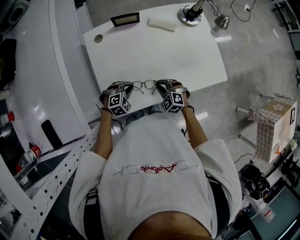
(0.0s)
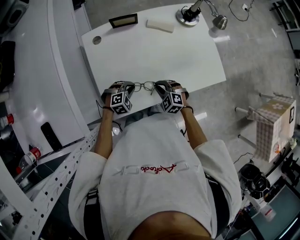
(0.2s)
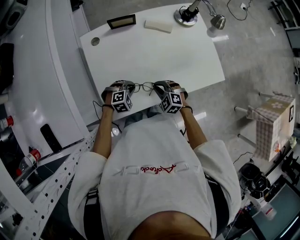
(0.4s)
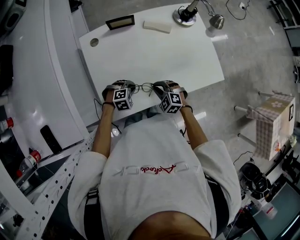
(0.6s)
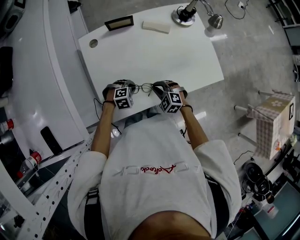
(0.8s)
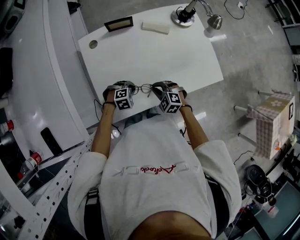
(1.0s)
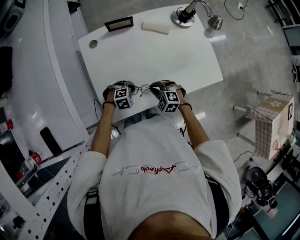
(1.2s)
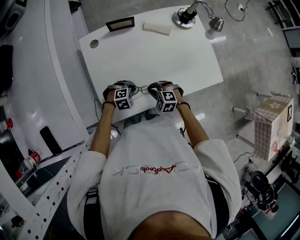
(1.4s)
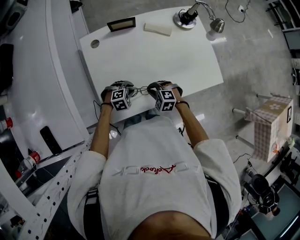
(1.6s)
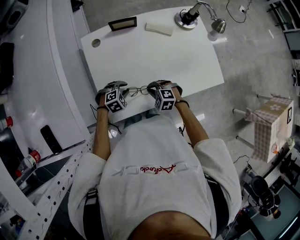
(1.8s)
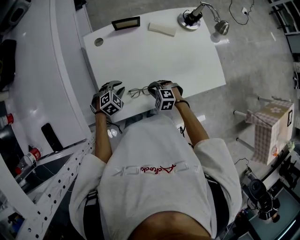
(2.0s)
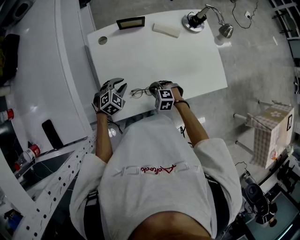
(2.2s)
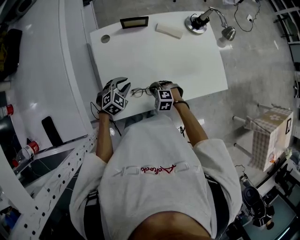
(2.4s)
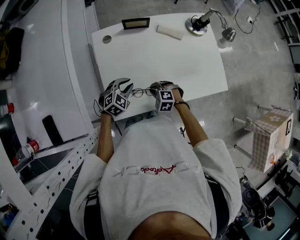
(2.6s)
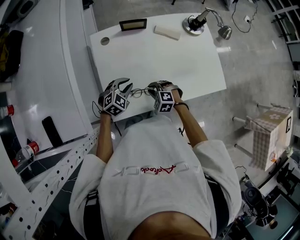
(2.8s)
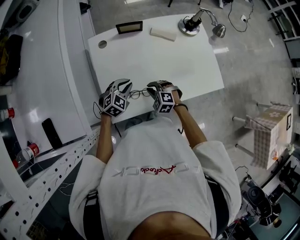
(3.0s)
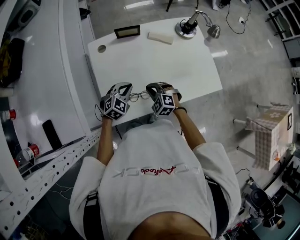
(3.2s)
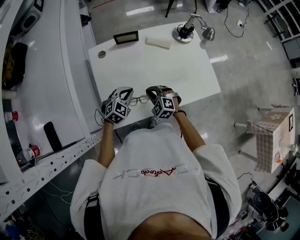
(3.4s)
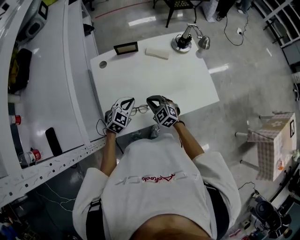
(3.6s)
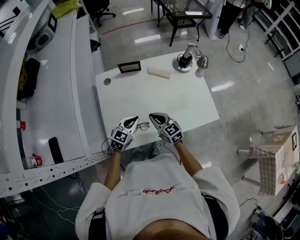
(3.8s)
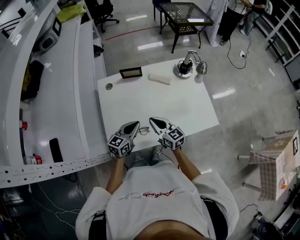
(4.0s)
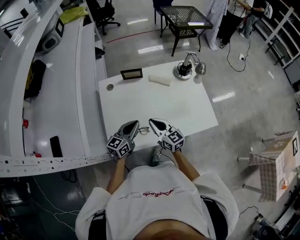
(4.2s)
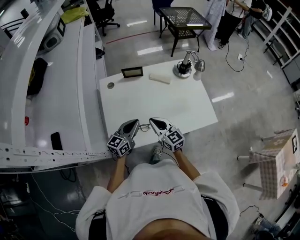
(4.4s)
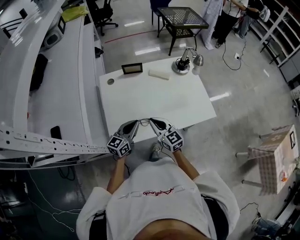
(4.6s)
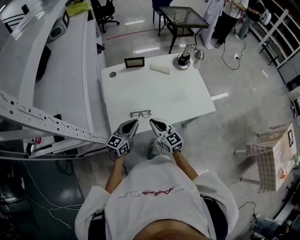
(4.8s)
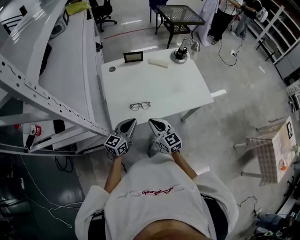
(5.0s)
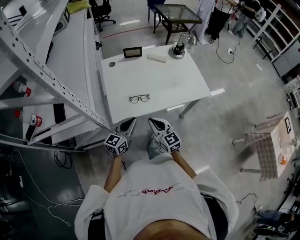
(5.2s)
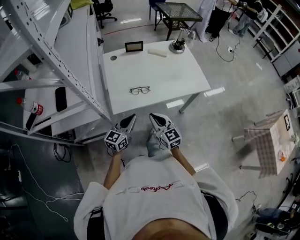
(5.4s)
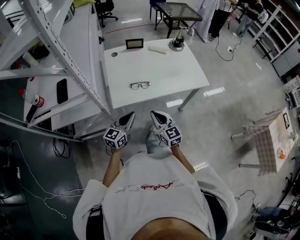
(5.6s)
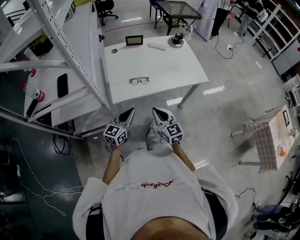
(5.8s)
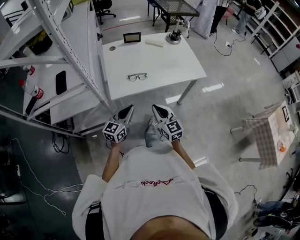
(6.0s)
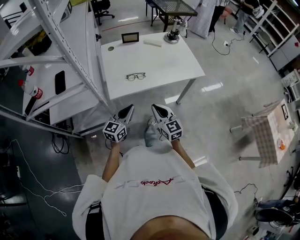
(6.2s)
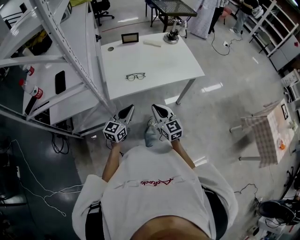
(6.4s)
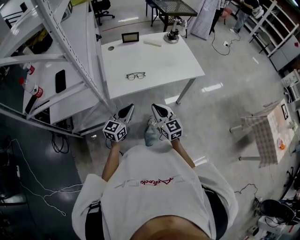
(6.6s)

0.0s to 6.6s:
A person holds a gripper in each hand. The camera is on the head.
0.0s to 1.6s: The grippers stay close to where they were, moving slightly.
1.6s to 3.2s: The right gripper goes some 5 cm upward, while the left gripper heads upward, covering roughly 10 cm, and swivels about 30 degrees.
3.2s to 5.0s: Both grippers travel together backward and upward, roughly 20 cm. The right gripper tilts its fingers about 40 degrees upward; the left gripper points its fingers approximately 30 degrees further upward.
5.0s to 6.6s: The two grippers go about 15 cm backward.

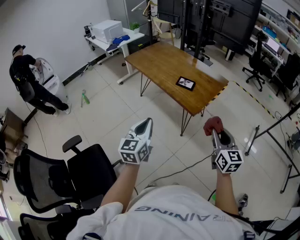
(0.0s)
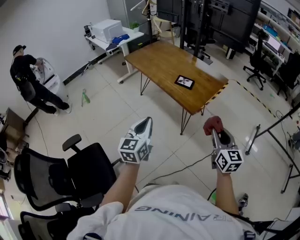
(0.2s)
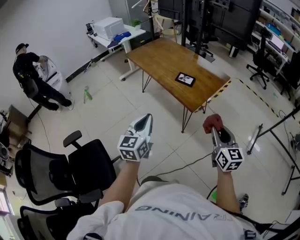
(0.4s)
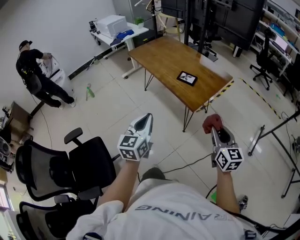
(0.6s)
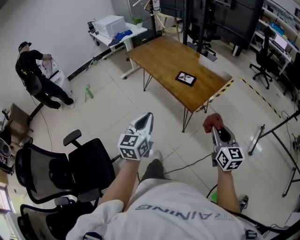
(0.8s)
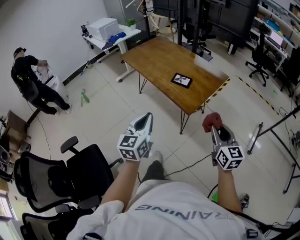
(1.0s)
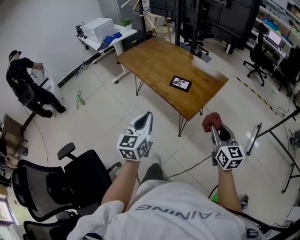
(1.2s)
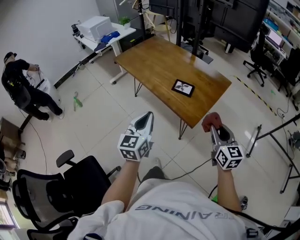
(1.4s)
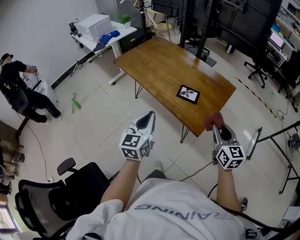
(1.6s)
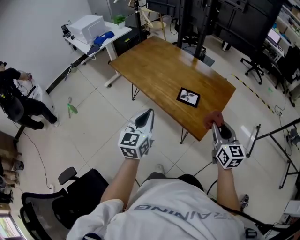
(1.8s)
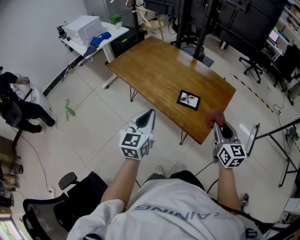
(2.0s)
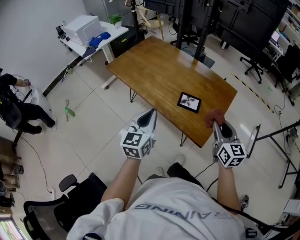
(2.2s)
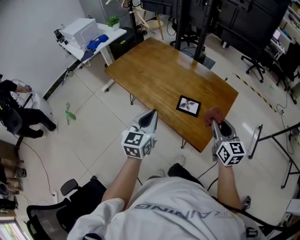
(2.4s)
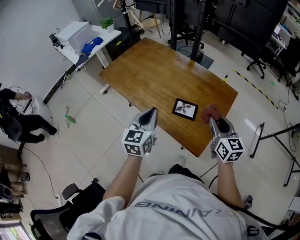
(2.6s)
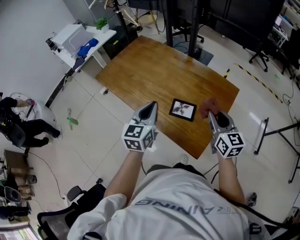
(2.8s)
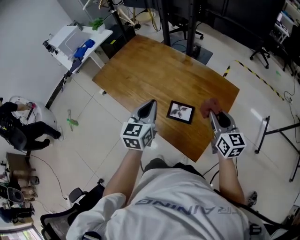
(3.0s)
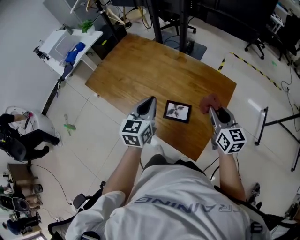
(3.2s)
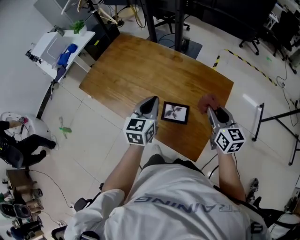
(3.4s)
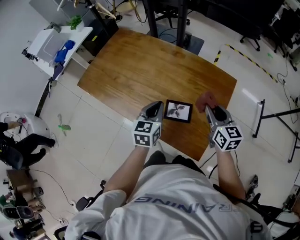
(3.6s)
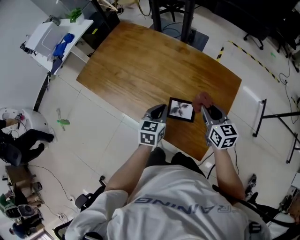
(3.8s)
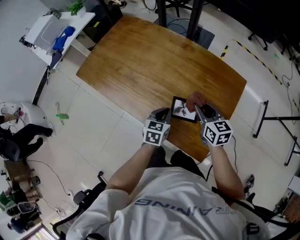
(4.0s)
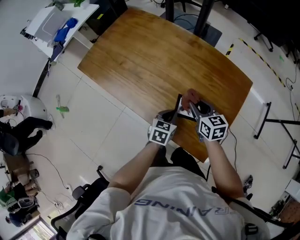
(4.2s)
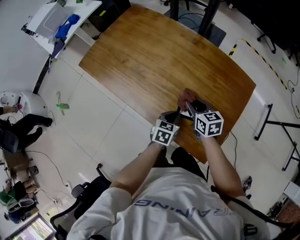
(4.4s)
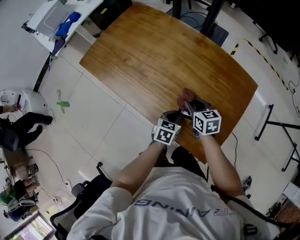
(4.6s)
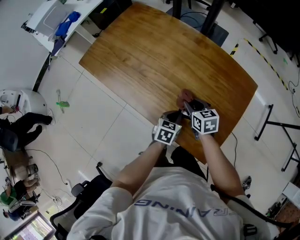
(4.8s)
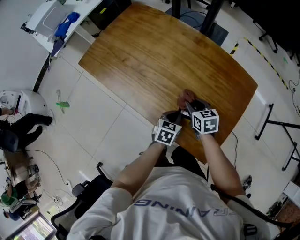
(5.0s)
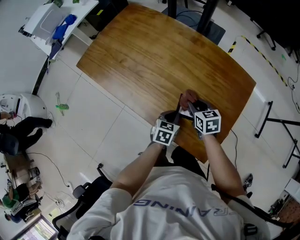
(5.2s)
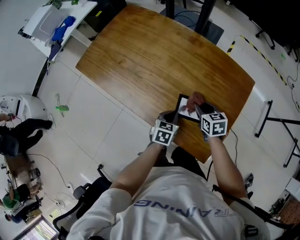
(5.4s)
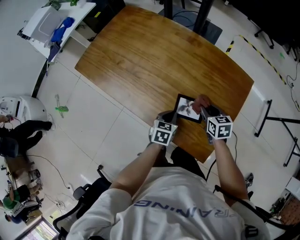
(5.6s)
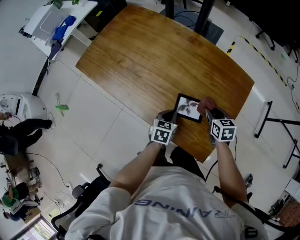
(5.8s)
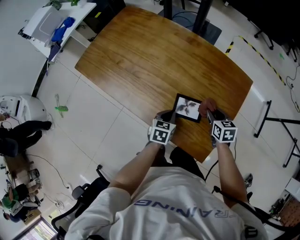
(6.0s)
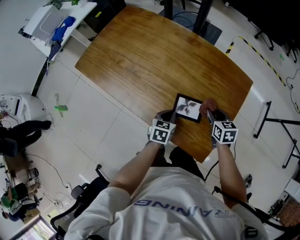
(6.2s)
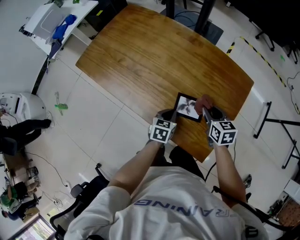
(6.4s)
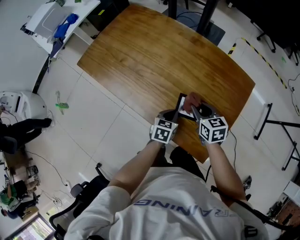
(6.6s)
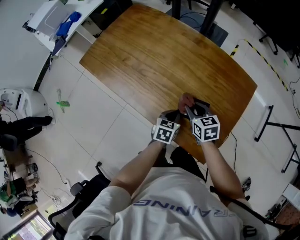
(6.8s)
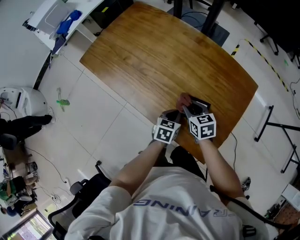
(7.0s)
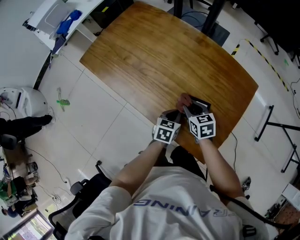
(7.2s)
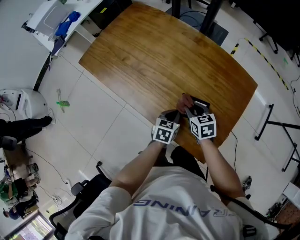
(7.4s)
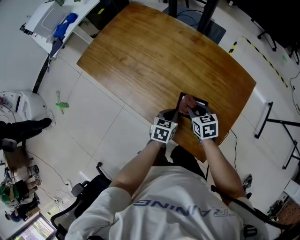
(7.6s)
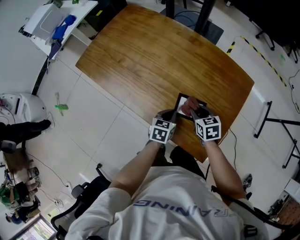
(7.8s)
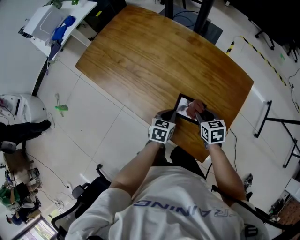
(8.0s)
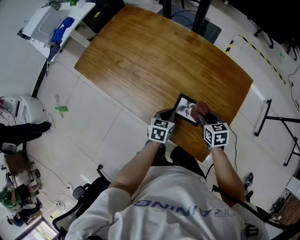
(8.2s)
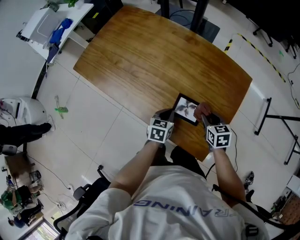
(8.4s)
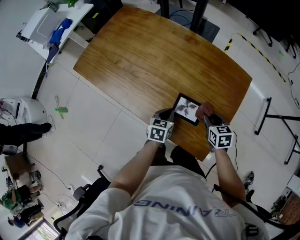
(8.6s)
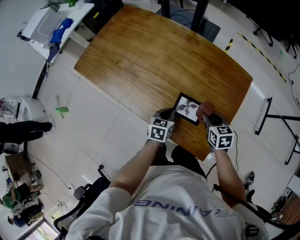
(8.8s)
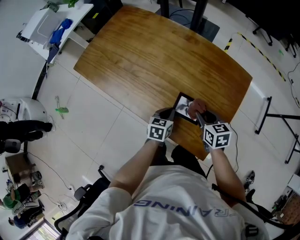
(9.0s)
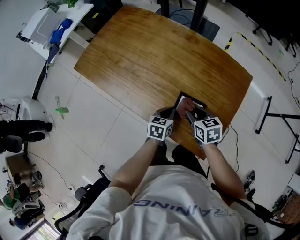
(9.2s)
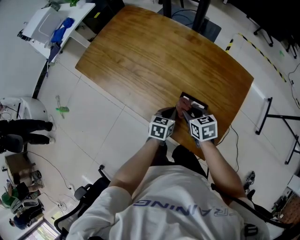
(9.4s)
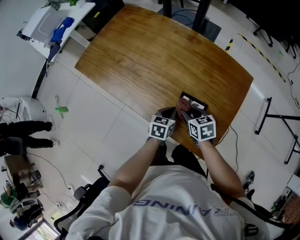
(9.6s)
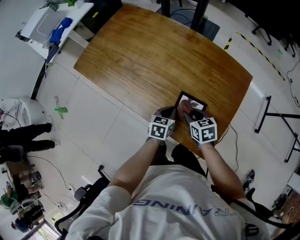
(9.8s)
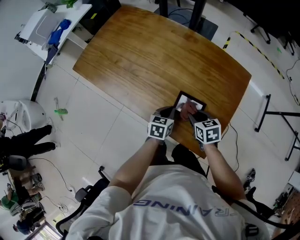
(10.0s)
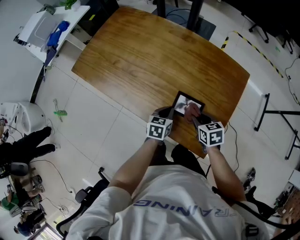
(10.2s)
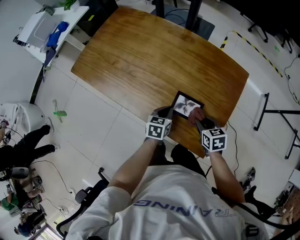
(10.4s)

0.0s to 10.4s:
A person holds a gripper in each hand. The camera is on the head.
0.0s to 1.4s: Both grippers travel together forward, some 15 cm.
1.4s to 3.0s: Both grippers travel together forward, some 30 cm.
3.0s to 4.4s: The right gripper moves downward, to the left and forward, roughly 25 cm, and changes its angle by about 30 degrees, while the left gripper heads downward, covering approximately 25 cm, and rotates roughly 30 degrees.
4.4s to 6.0s: The right gripper heads to the right, covering some 15 cm.
6.0s to 7.4s: The right gripper goes about 15 cm to the left.
7.4s to 9.0s: The right gripper goes some 5 cm to the right.
9.0s to 10.4s: The right gripper reaches about 5 cm to the left, then returns.

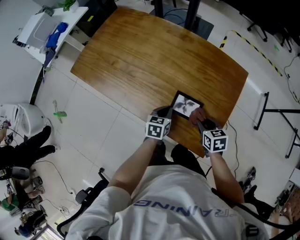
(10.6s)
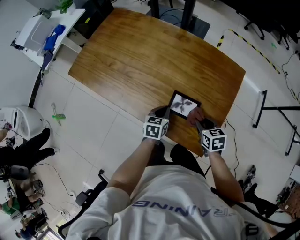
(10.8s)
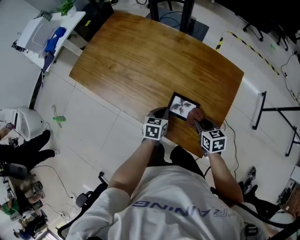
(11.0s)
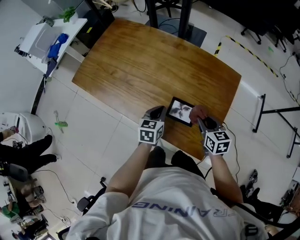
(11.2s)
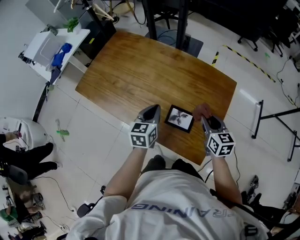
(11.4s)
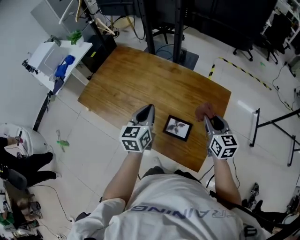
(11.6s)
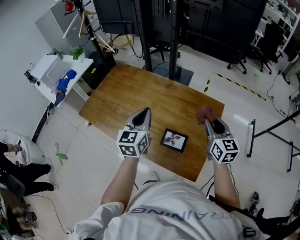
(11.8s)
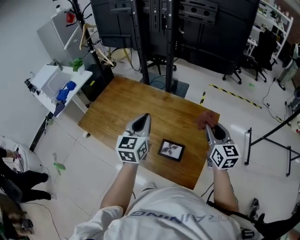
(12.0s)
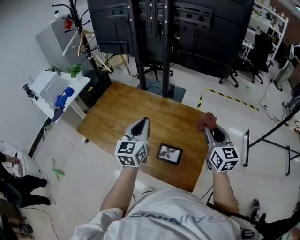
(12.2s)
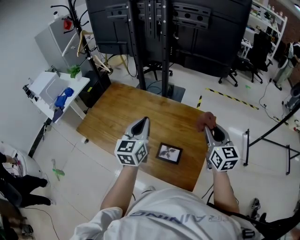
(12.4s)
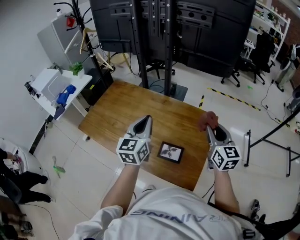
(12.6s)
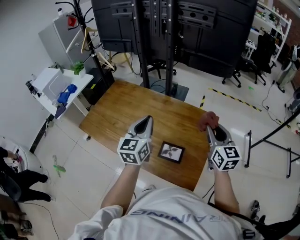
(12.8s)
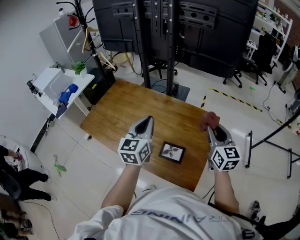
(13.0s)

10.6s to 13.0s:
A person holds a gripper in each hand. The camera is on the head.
10.6s to 11.8s: The grippers both shift upward by roughly 30 cm. The left gripper tilts its fingers about 30 degrees upward; the right gripper points its fingers some 40 degrees further upward.
11.8s to 13.0s: The right gripper goes roughly 5 cm upward. The left gripper moves about 5 cm.

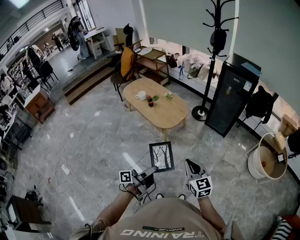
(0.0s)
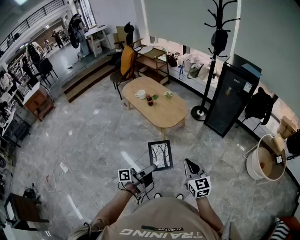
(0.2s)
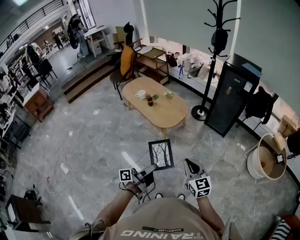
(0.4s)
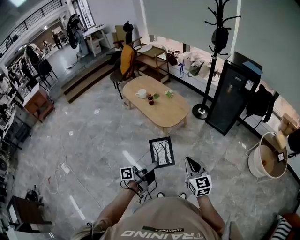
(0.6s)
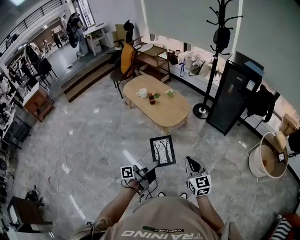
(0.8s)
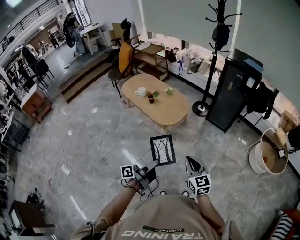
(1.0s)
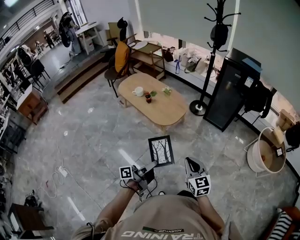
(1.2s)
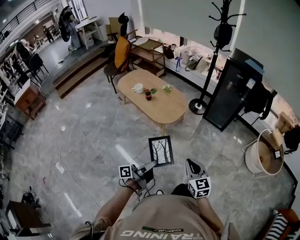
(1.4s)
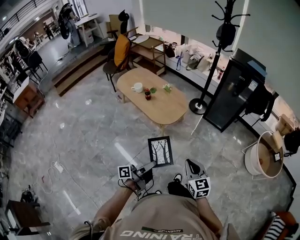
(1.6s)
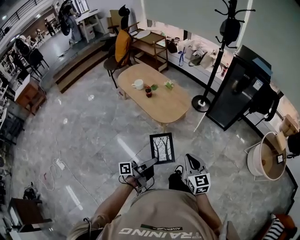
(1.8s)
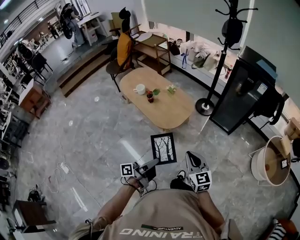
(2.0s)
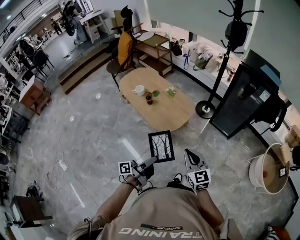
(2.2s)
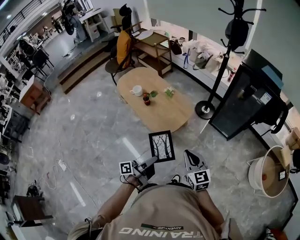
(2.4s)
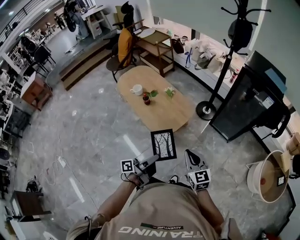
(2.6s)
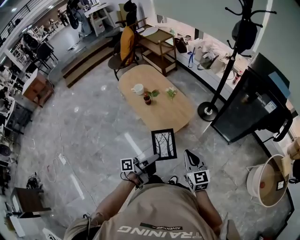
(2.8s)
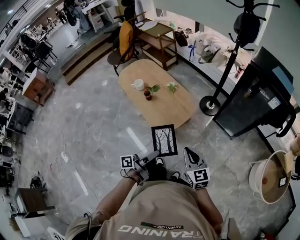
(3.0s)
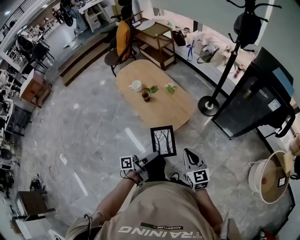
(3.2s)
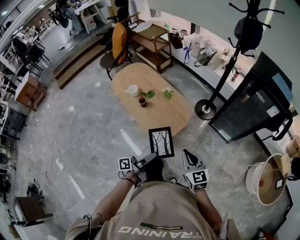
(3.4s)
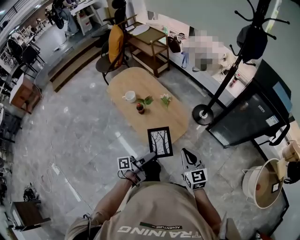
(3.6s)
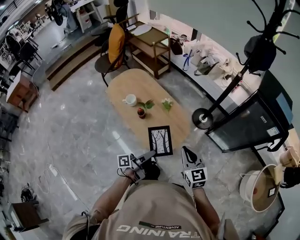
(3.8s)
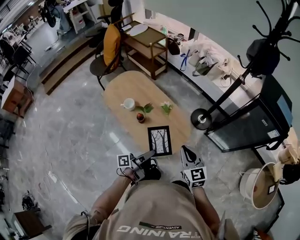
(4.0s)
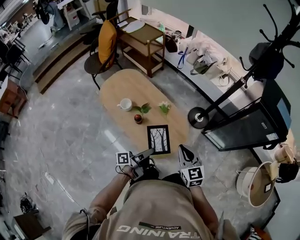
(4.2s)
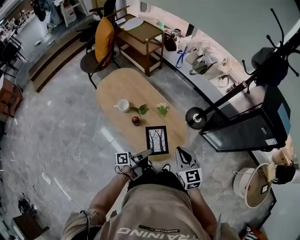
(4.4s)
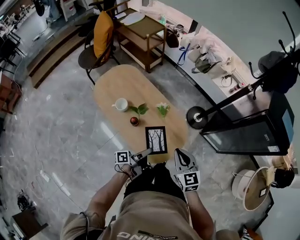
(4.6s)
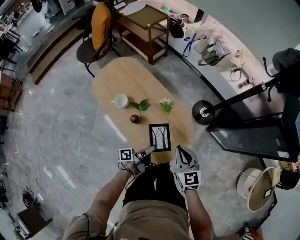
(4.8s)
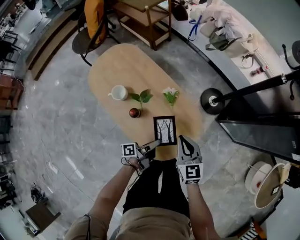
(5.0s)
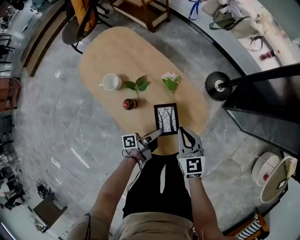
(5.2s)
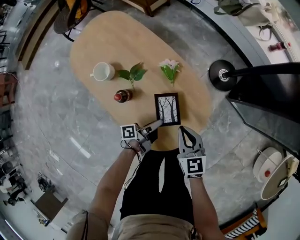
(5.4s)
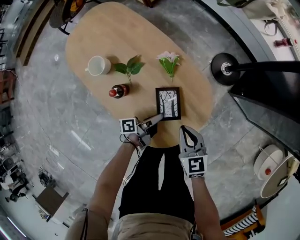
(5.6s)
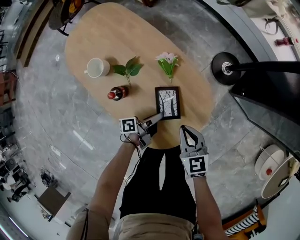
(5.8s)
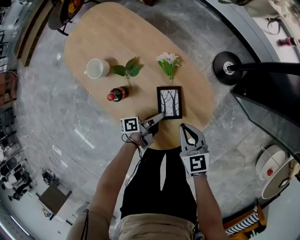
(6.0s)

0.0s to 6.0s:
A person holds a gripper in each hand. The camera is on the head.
0.0s to 1.6s: The left gripper ends up roughly 5 cm from where it was.
1.6s to 3.0s: Both grippers travel together forward, about 20 cm.
3.0s to 4.4s: Both grippers move forward and to the left, roughly 20 cm.
4.4s to 6.0s: The grippers both shift downward by roughly 25 cm.
